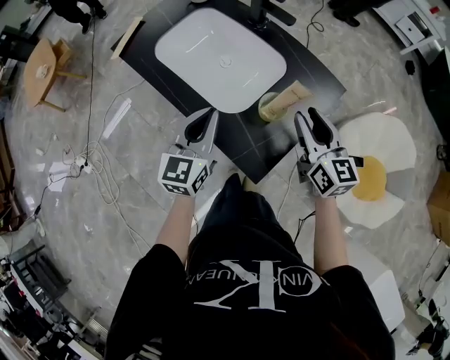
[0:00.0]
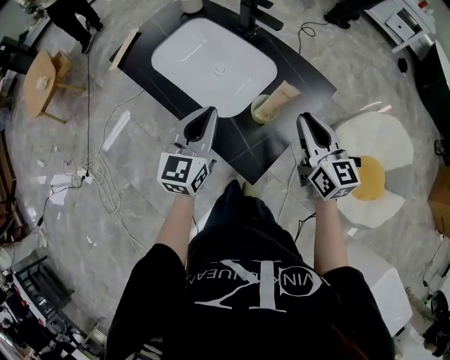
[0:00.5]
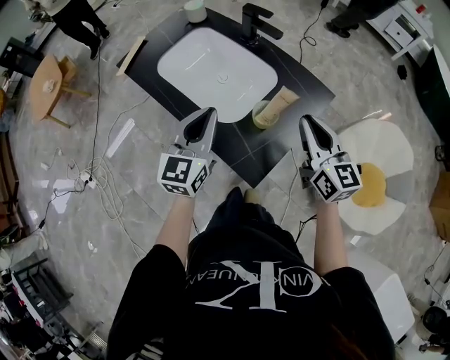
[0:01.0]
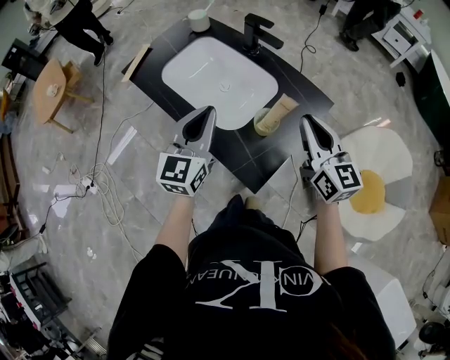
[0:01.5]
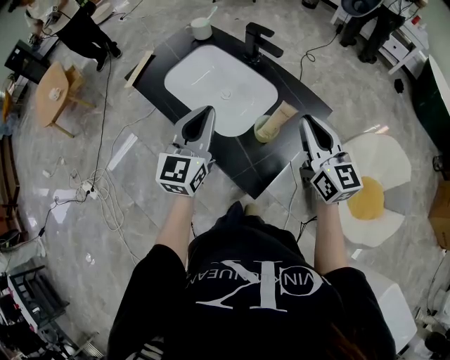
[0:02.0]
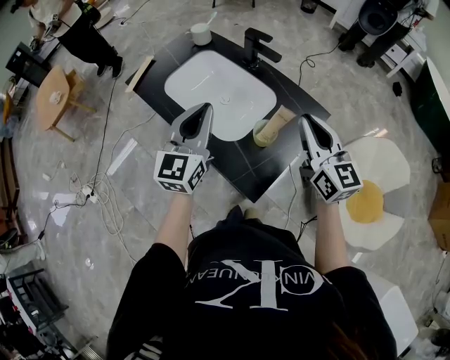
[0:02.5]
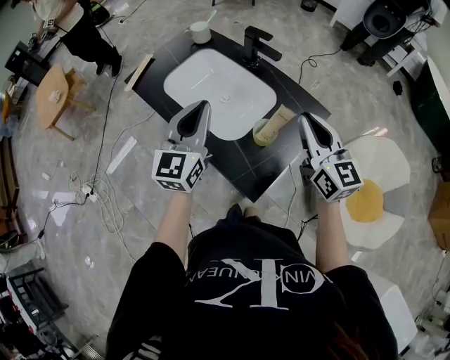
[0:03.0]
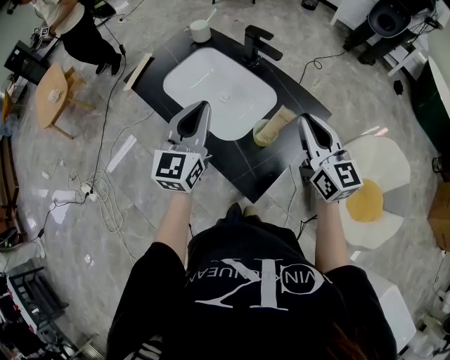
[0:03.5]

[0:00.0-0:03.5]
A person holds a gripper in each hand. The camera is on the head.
0:00.0 to 0:02.0: Both grippers travel together upward, some 10 cm. The right gripper closes up.
0:02.0 to 0:03.5: The grippers stay close to where they were, moving slightly.

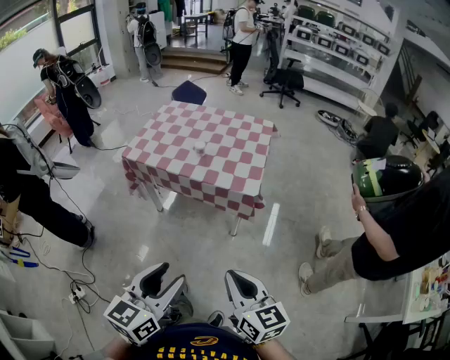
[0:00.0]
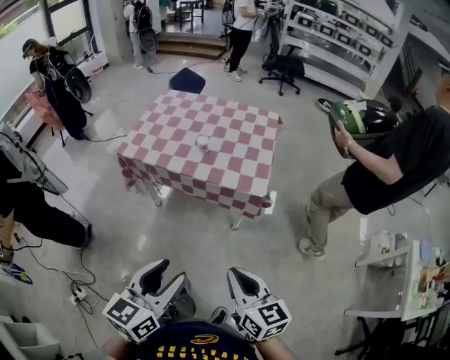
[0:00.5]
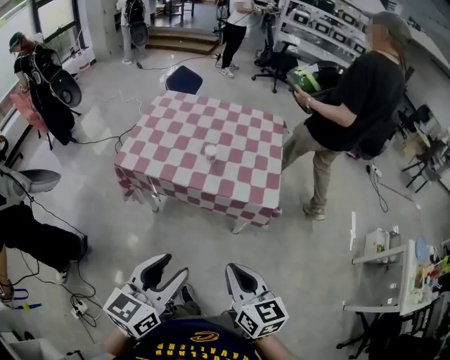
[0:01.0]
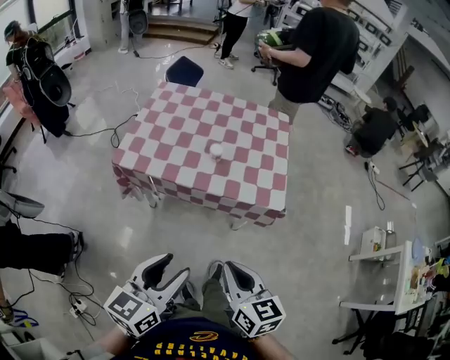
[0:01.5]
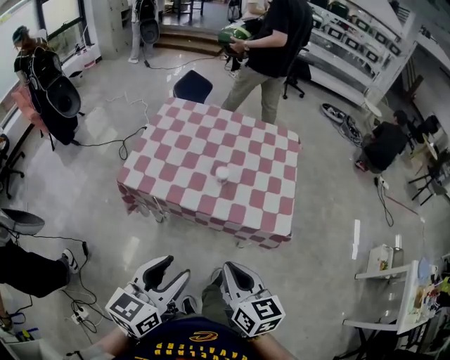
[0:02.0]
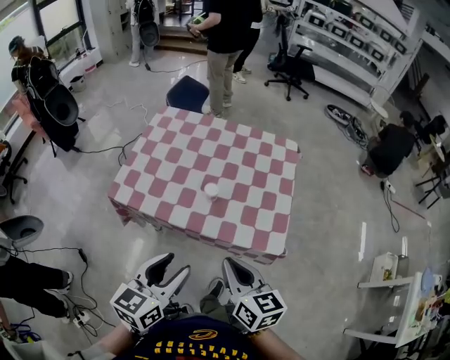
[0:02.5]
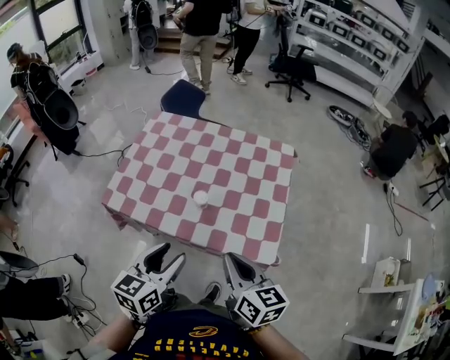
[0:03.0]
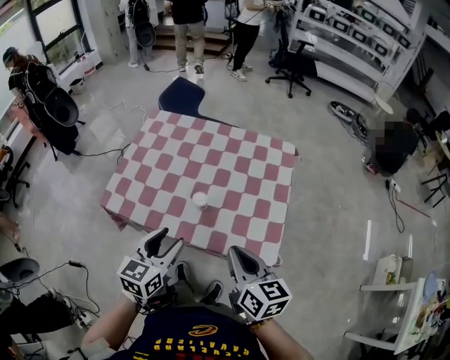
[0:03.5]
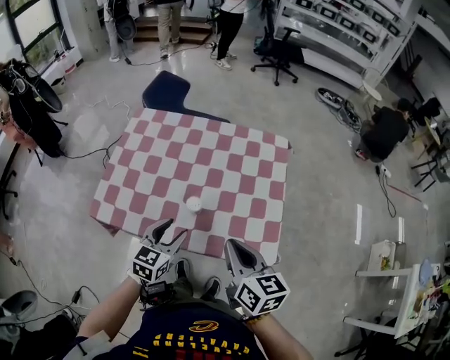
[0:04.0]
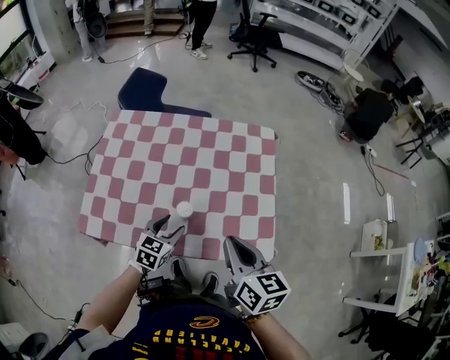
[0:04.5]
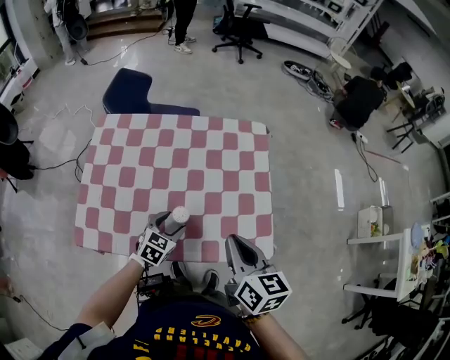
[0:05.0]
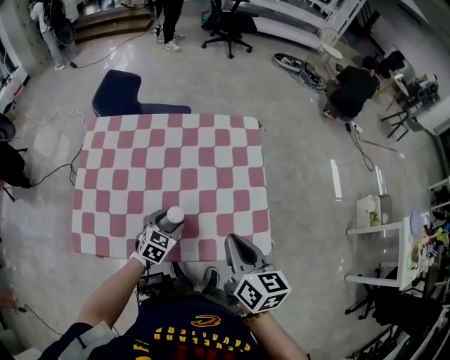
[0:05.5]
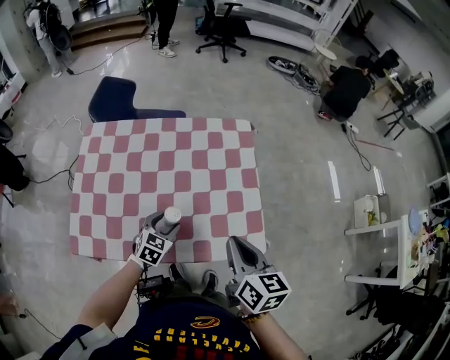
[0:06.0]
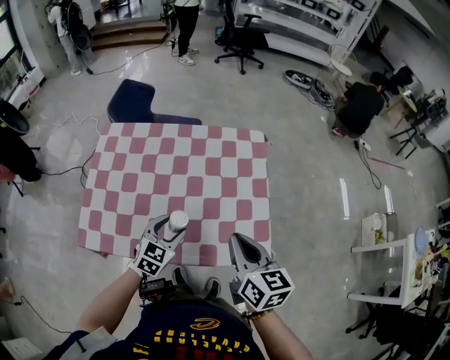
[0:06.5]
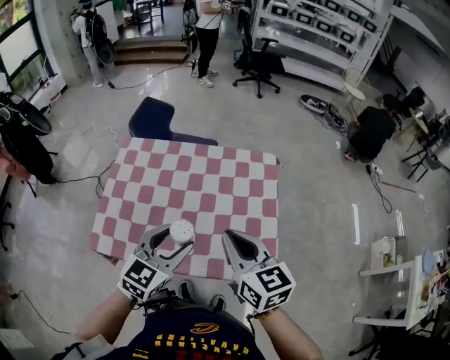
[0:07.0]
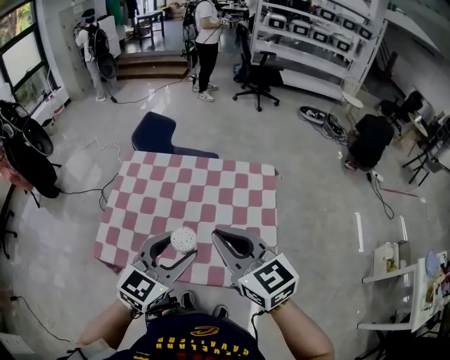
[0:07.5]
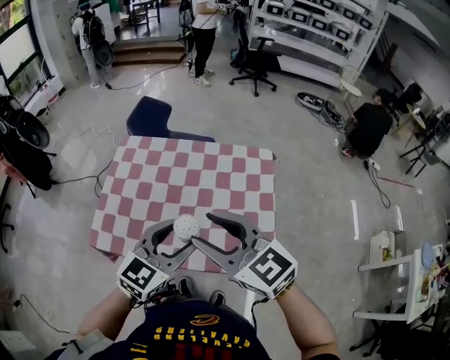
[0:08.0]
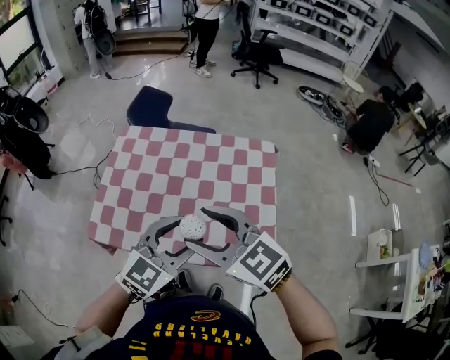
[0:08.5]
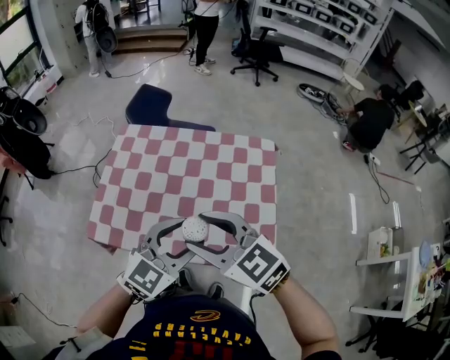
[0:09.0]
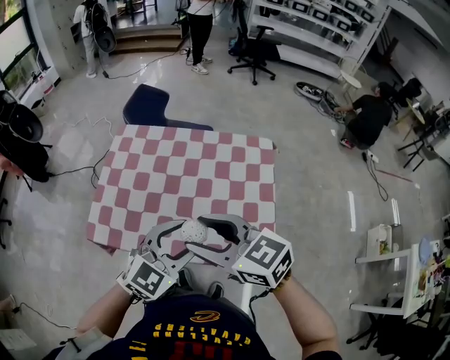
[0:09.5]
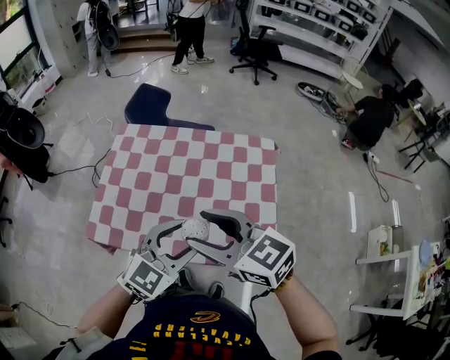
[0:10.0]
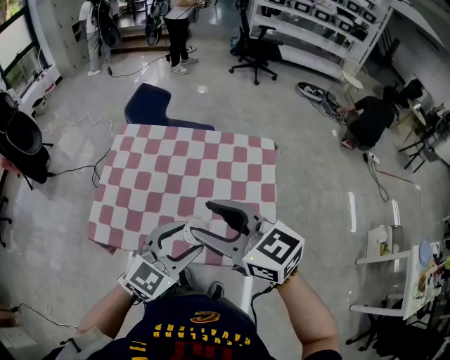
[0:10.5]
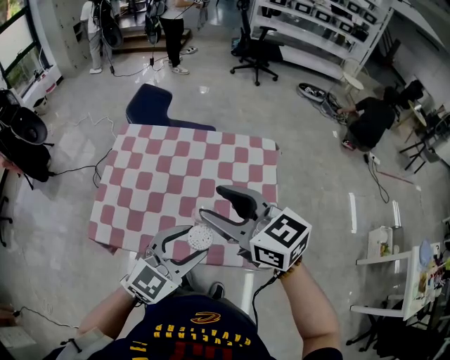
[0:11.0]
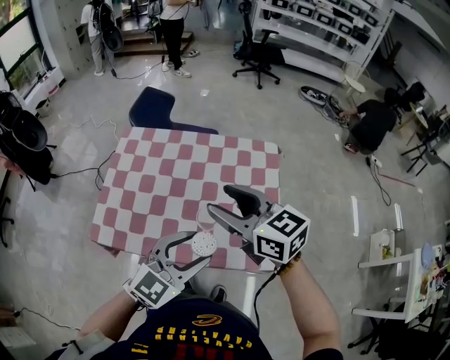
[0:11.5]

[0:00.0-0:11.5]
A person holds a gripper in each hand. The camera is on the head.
0:00.0 to 0:02.0: The two grippers go roughly 35 cm forward and to the left.
0:02.0 to 0:04.0: The right gripper moves forward and to the right, roughly 25 cm, while the left gripper is displaced forward and downward by roughly 30 cm.
0:04.0 to 0:06.0: The right gripper shifts by about 5 cm, and swivels about 20 degrees. The left gripper travels downward and forward by some 15 cm, and rotates about 20 degrees.
0:06.0 to 0:07.5: The right gripper moves upward and to the left, approximately 20 cm, and turns by roughly 50 degrees. Meanwhile the left gripper goes roughly 30 cm upward, and rotates some 30 degrees.
0:07.5 to 0:09.5: The right gripper travels to the left by about 5 cm, turns by roughly 20 degrees, and opens up.
0:09.5 to 0:11.5: The right gripper heads forward, covering roughly 10 cm.

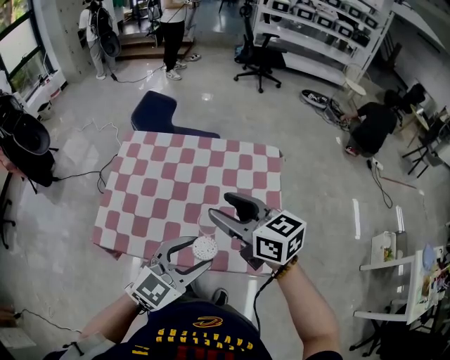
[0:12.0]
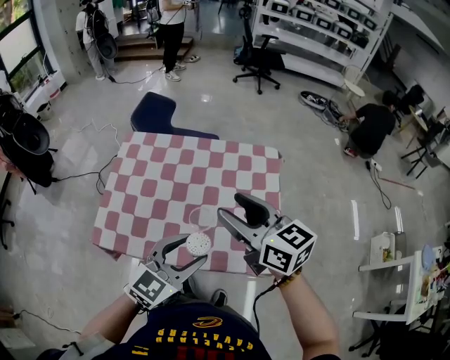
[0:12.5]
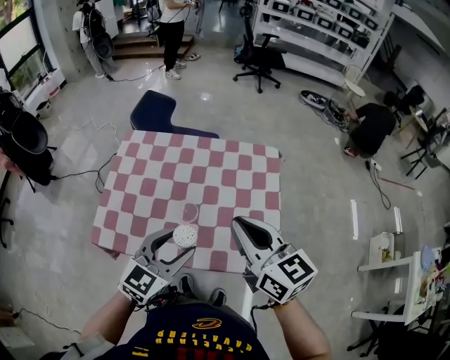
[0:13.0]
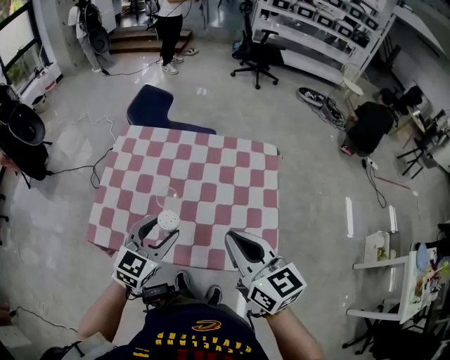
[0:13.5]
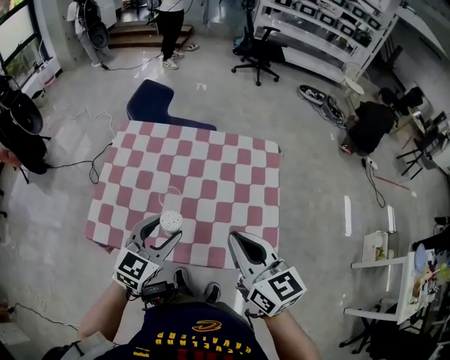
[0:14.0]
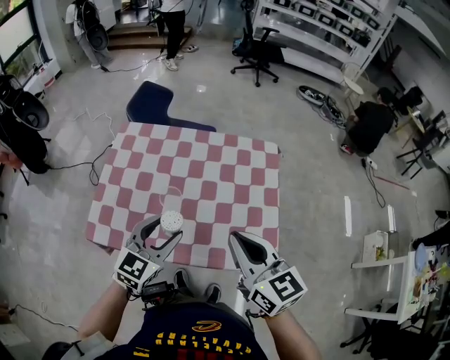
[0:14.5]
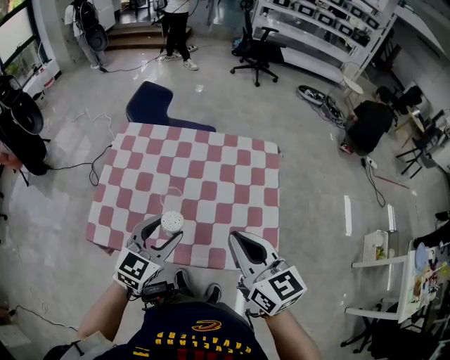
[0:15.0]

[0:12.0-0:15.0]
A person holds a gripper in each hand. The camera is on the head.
0:12.0 to 0:13.5: The right gripper is displaced backward by roughly 5 cm, and closes its fingers, while the left gripper goes roughly 15 cm to the left, forward and downward.
0:13.5 to 0:15.0: Neither gripper changes place.

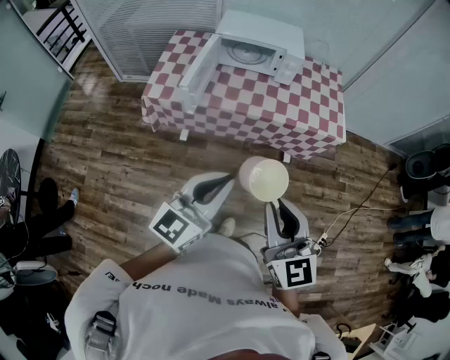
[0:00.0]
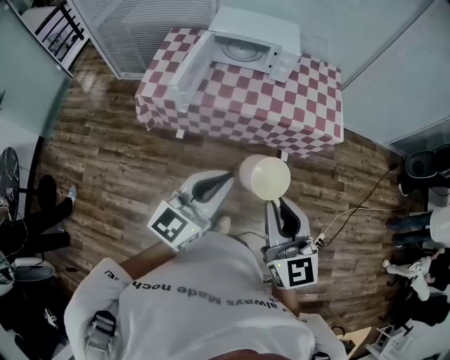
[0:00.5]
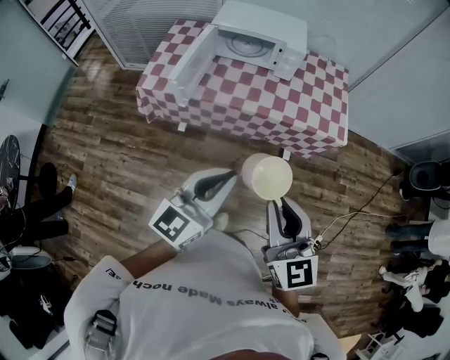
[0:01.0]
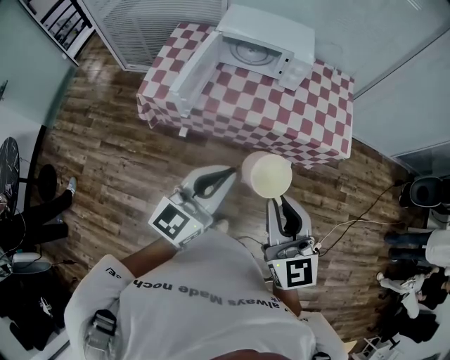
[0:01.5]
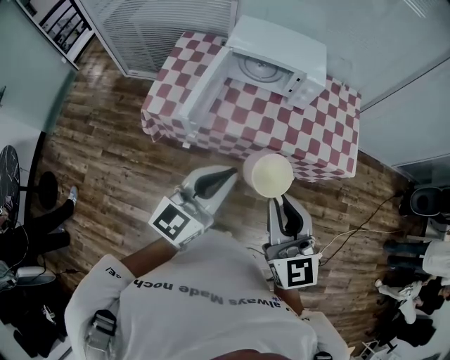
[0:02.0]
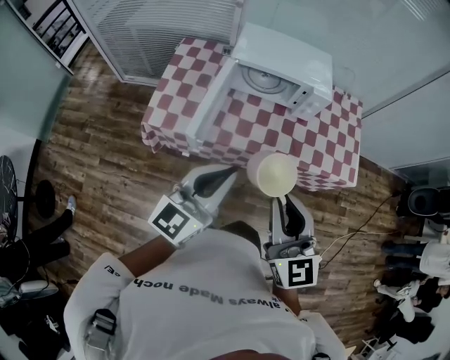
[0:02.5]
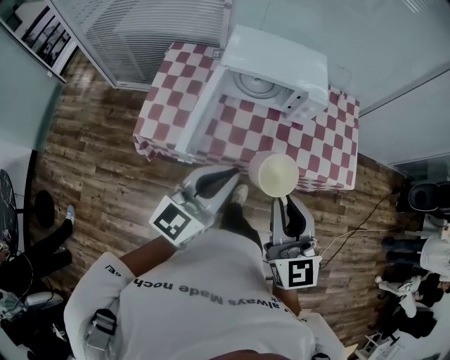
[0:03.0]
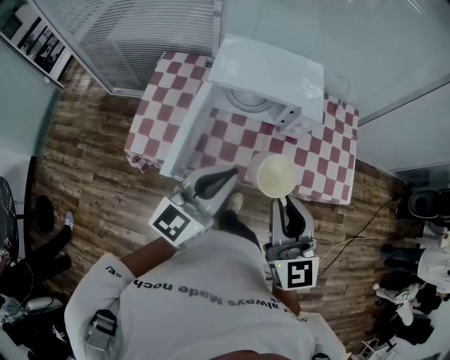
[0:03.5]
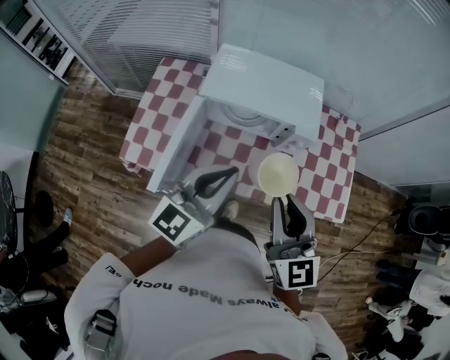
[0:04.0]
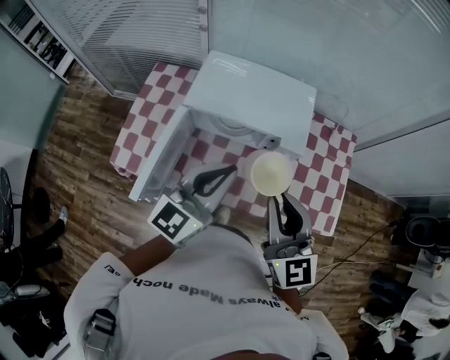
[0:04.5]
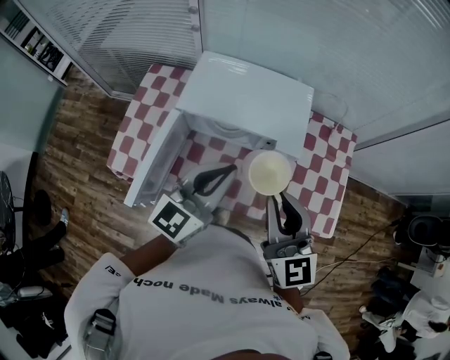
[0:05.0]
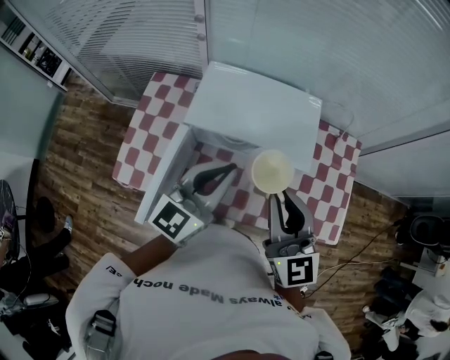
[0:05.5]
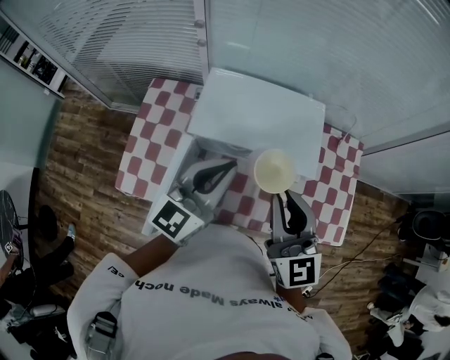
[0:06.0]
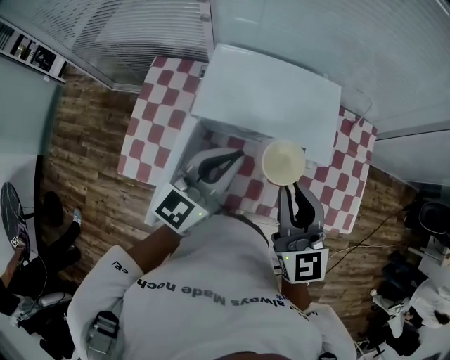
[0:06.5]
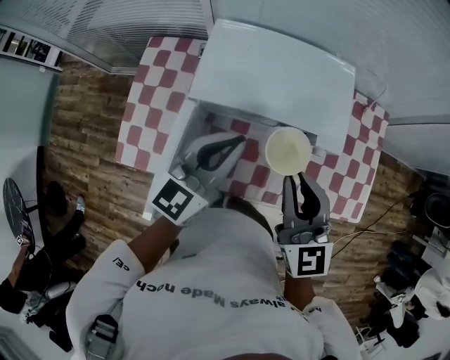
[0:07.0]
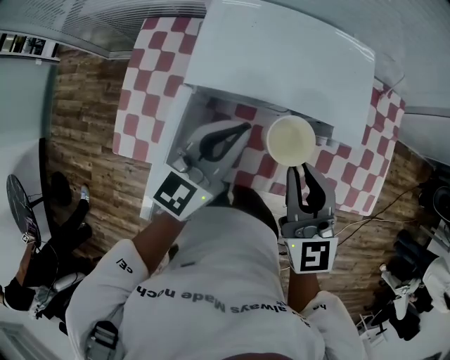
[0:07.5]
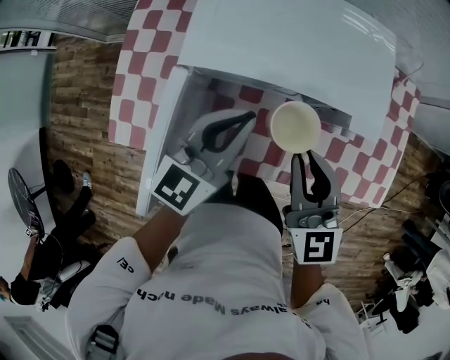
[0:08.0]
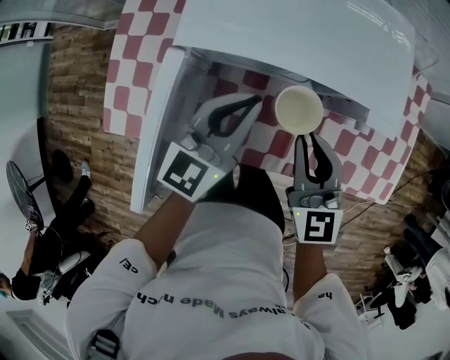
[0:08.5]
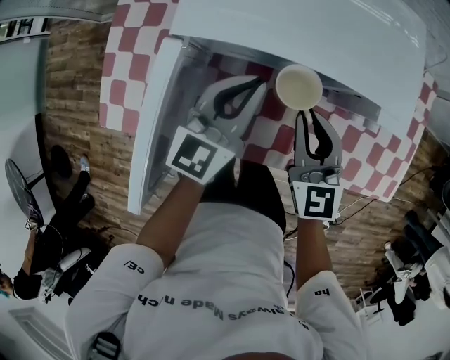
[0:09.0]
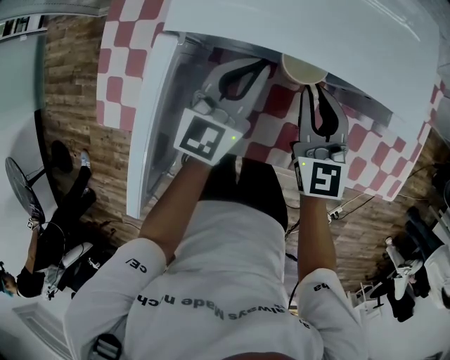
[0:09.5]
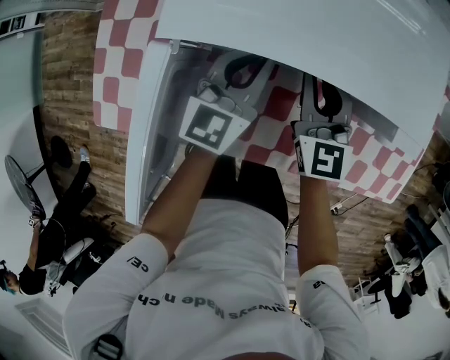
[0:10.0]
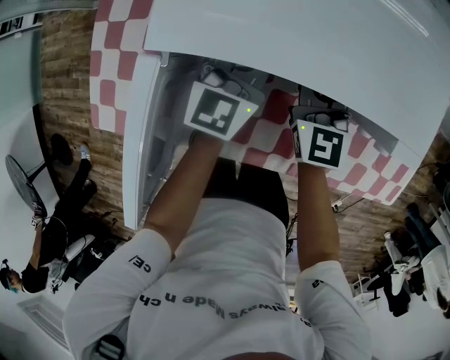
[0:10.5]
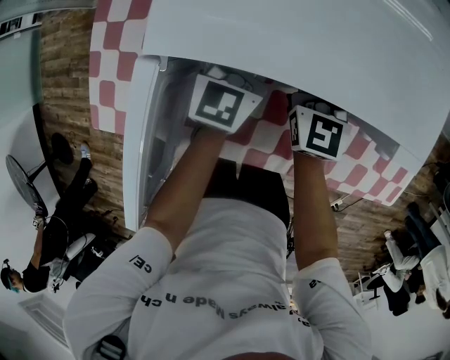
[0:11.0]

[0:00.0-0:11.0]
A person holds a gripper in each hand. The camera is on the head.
0:00.0 to 0:02.0: The two grippers go some 20 cm forward.
0:02.0 to 0:03.5: The grippers both shift forward by some 20 cm.
0:03.5 to 0:05.5: Both grippers move forward, about 20 cm.
0:05.5 to 0:07.5: The left gripper shifts some 15 cm downward and forward. Meanwhile the right gripper travels downward by some 15 cm.
0:07.5 to 0:09.0: Both grippers move downward, about 15 cm.
0:09.0 to 0:11.0: The right gripper heads forward, covering some 15 cm; the left gripper goes approximately 15 cm forward and downward.
